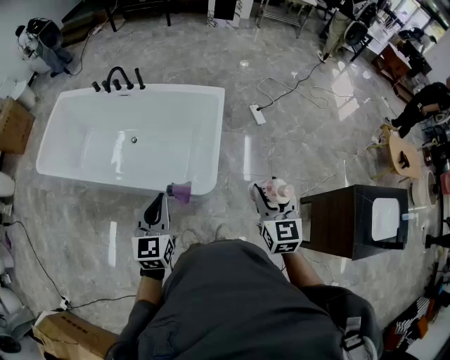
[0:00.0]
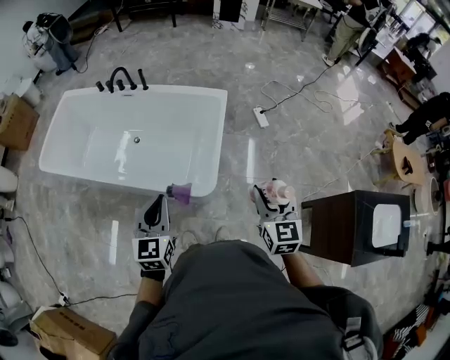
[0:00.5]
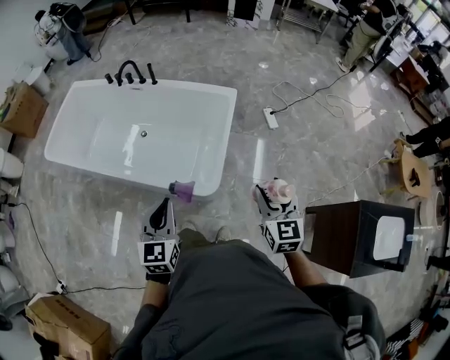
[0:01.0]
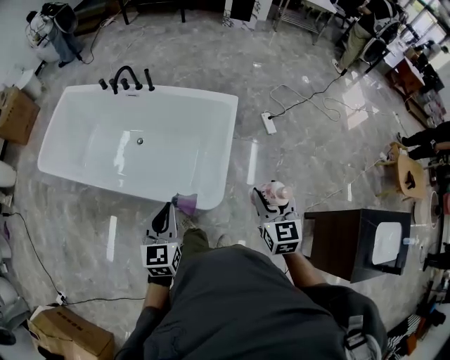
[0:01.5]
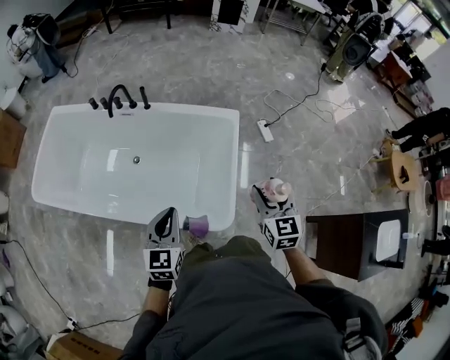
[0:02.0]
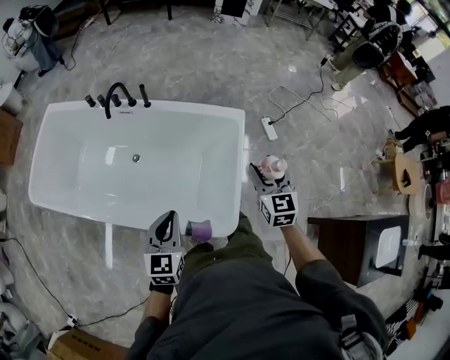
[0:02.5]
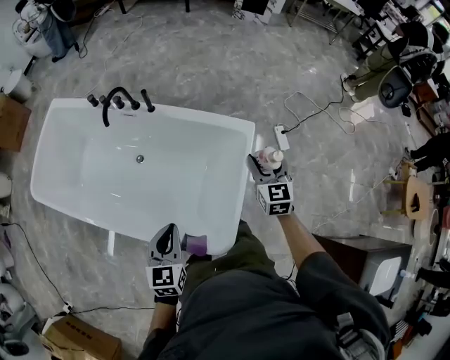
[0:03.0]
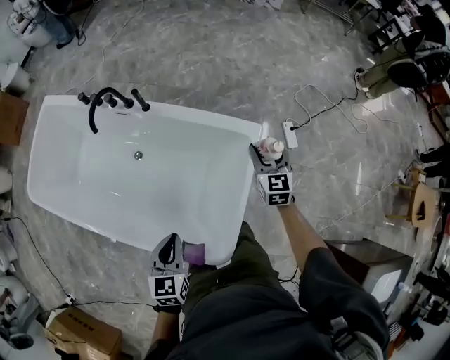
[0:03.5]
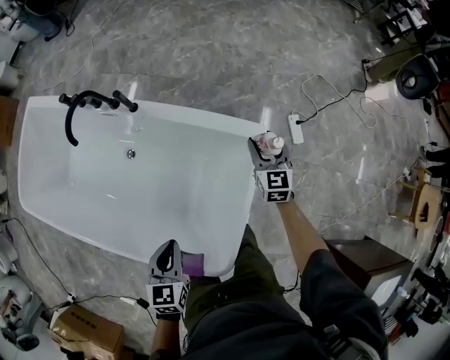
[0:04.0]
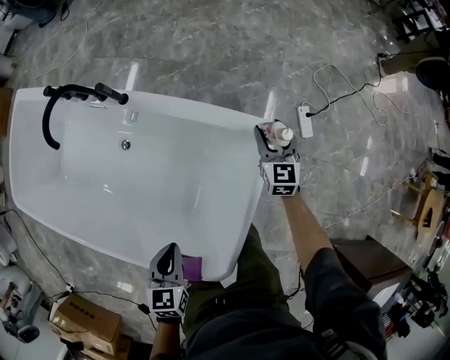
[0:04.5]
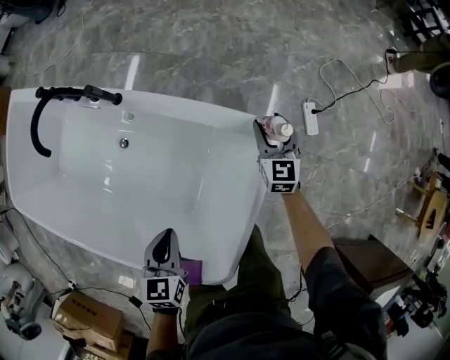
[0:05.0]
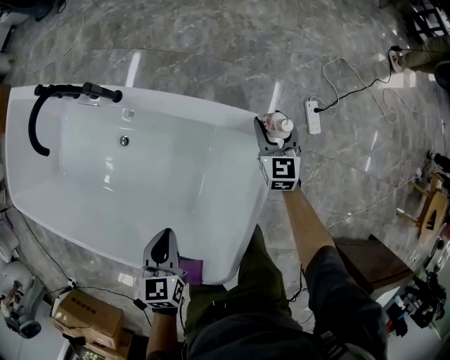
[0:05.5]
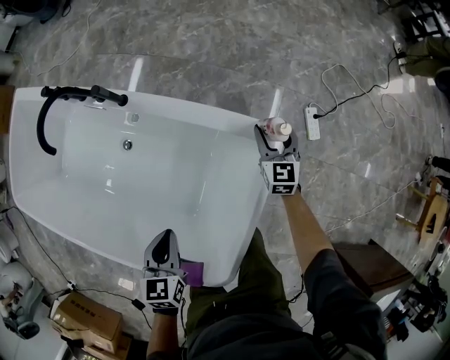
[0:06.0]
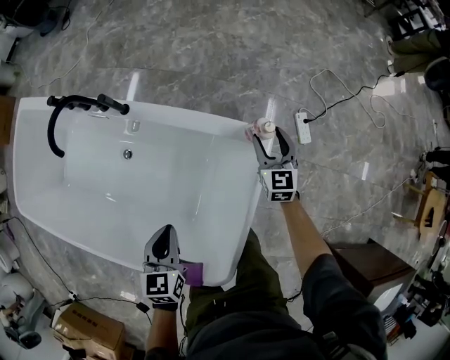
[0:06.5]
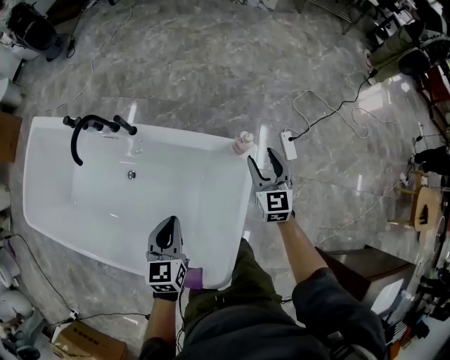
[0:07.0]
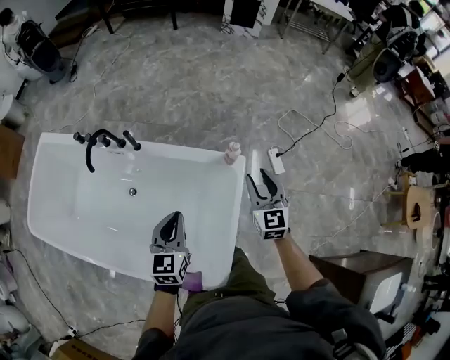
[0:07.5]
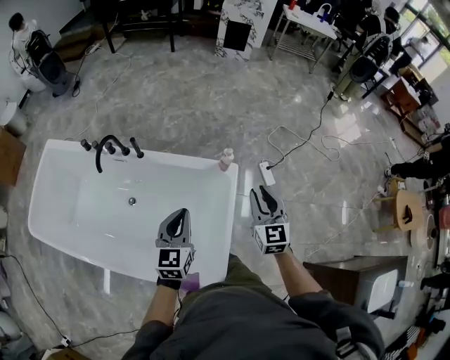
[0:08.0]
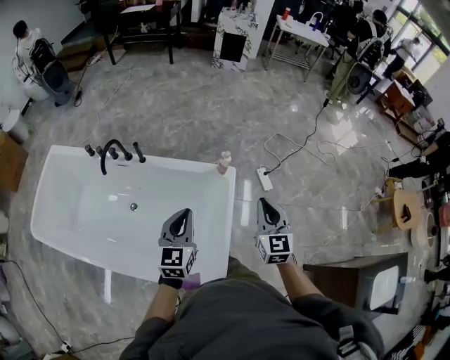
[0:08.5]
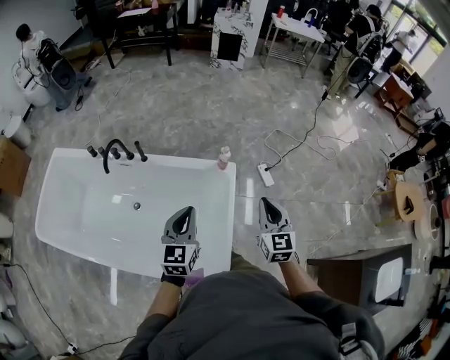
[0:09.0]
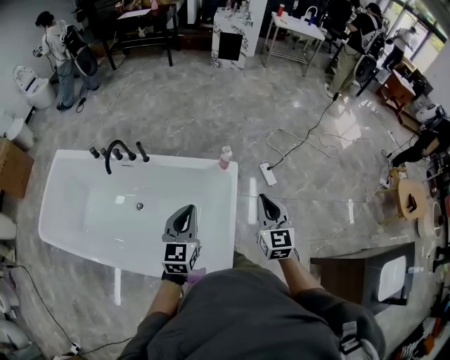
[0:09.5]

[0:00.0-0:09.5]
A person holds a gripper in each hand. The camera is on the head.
0.0 to 2.0 s: The two grippers go approximately 20 cm forward and to the left.
2.0 to 4.0 s: The left gripper travels forward and downward by some 30 cm, and turns by some 30 degrees. The right gripper travels forward and downward by about 60 cm.
4.0 to 5.5 s: The grippers both shift downward and forward by roughly 15 cm.
5.5 to 7.5 s: The left gripper heads upward, covering roughly 25 cm, and changes its angle by some 30 degrees, while the right gripper goes about 35 cm upward and backward.
7.5 to 9.5 s: The right gripper goes about 25 cm backward and upward, and closes. The left gripper heads upward, backward and to the right, covering roughly 15 cm.

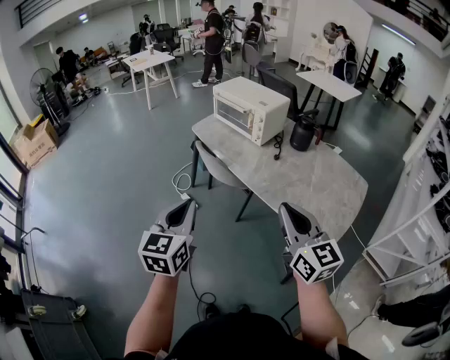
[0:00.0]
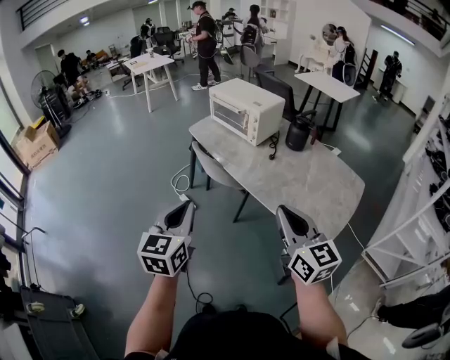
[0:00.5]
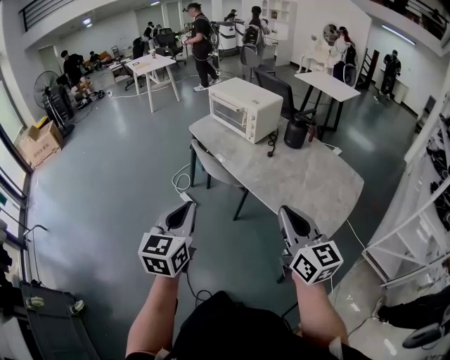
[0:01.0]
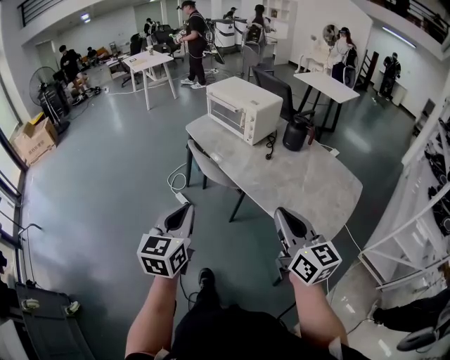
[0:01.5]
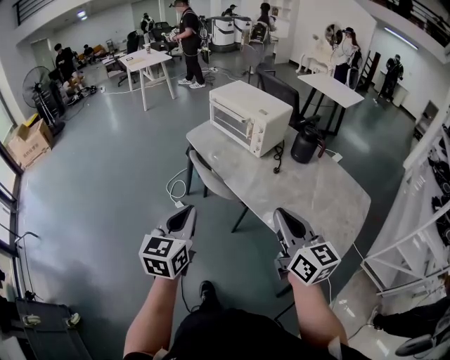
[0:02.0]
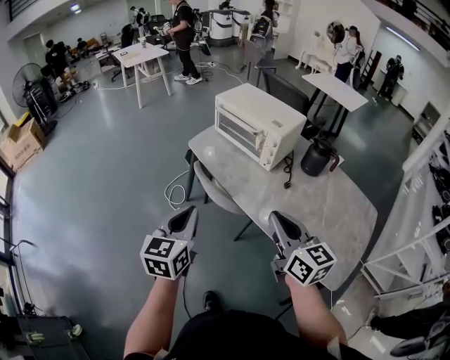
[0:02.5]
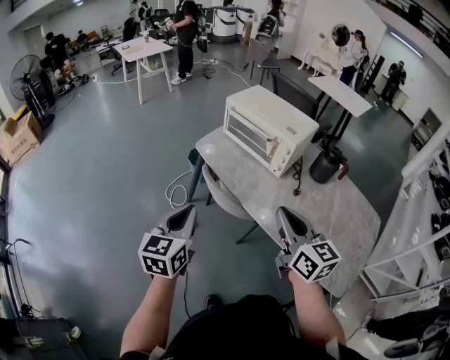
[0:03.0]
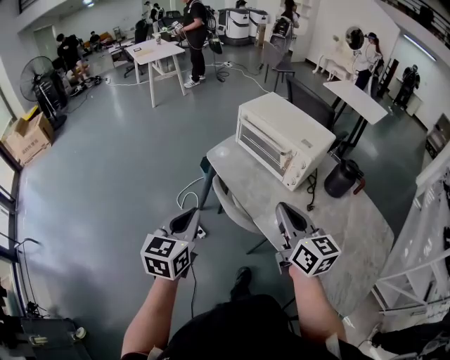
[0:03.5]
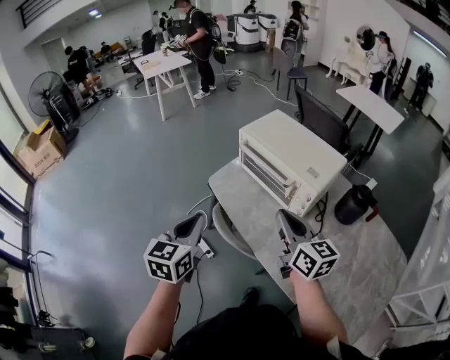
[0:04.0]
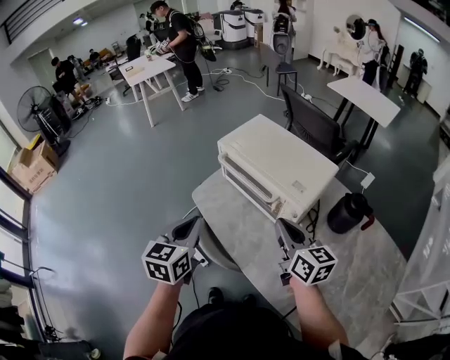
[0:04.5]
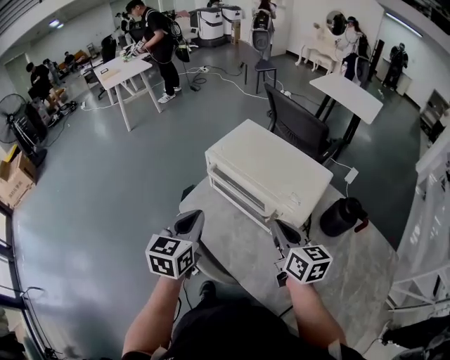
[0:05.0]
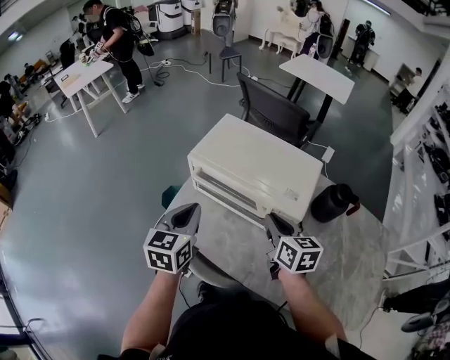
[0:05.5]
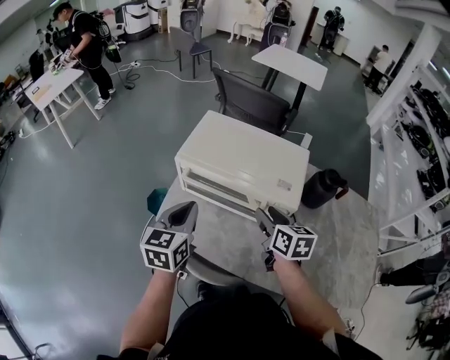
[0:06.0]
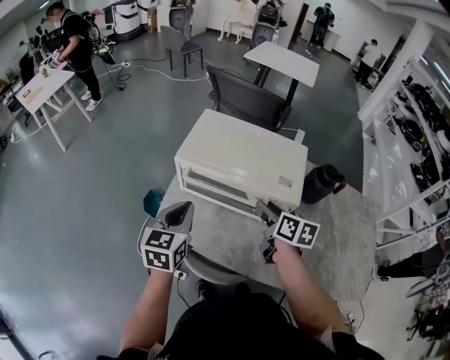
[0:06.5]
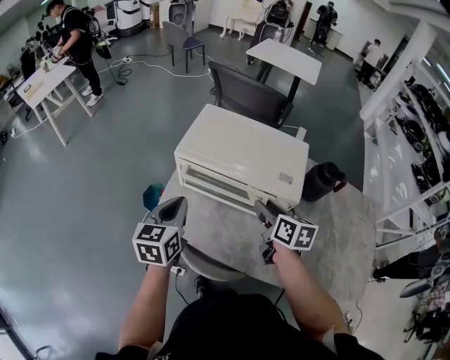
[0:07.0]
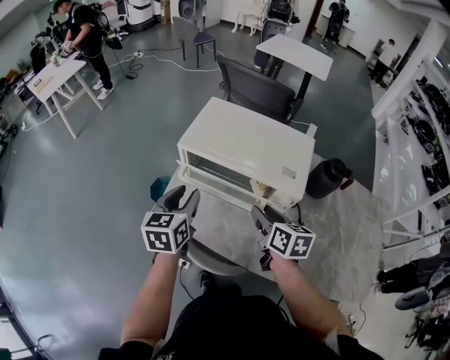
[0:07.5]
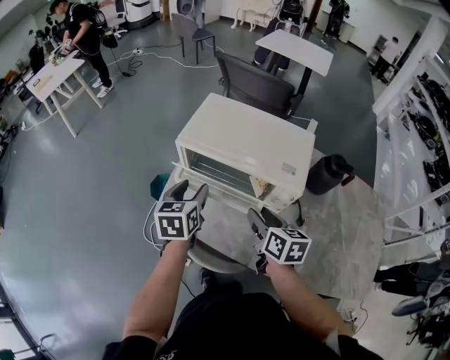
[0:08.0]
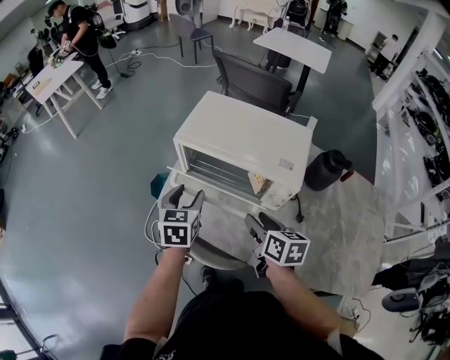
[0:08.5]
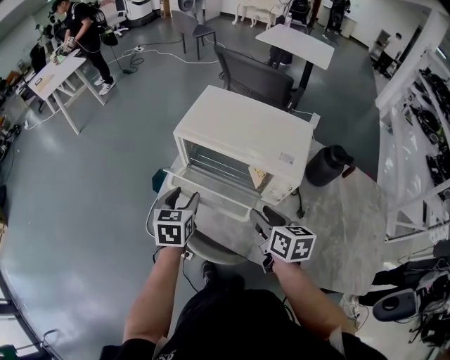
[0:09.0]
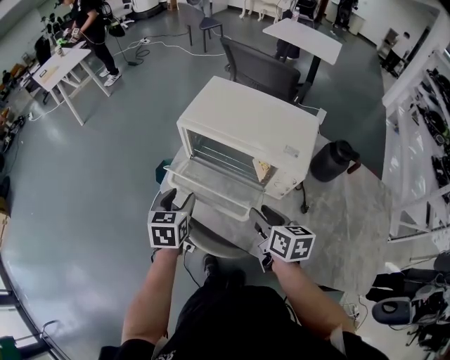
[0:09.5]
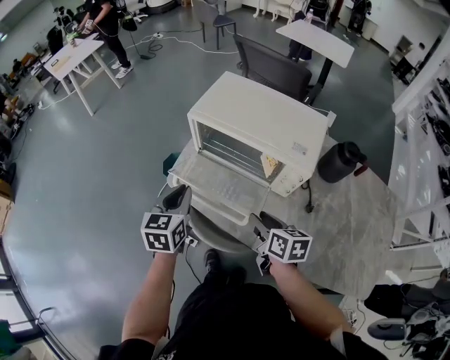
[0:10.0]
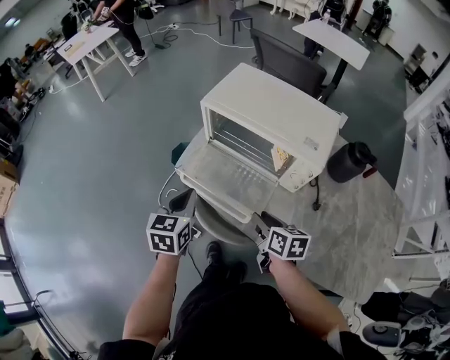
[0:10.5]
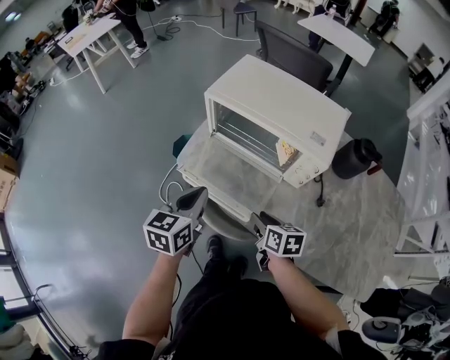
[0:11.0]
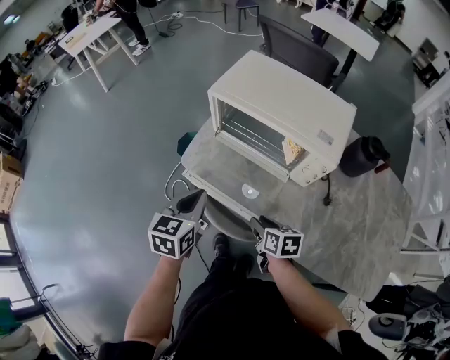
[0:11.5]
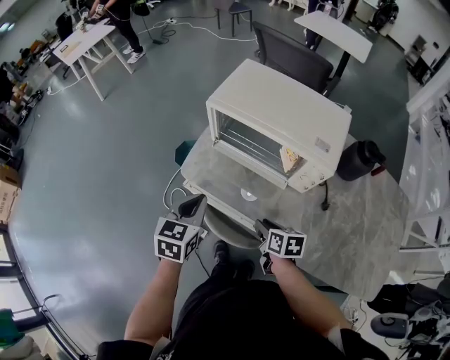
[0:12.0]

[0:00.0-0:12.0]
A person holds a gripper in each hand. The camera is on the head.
0.0 to 2.0 s: Both grippers travel together forward, some 10 cm.
2.0 to 4.0 s: Both grippers travel together forward, approximately 35 cm.
4.0 to 6.0 s: The left gripper shifts by approximately 25 cm, and rotates approximately 30 degrees, while the right gripper changes place by approximately 20 cm, turns by approximately 40 degrees, and opens up.
6.0 to 8.0 s: The left gripper goes roughly 5 cm downward, and opens up; the right gripper changes place by roughly 5 cm.
8.0 to 10.0 s: The left gripper goes approximately 10 cm backward and to the left, and closes up. The right gripper moves backward and downward, roughly 10 cm.
10.0 to 12.0 s: The right gripper moves downward, about 10 cm.

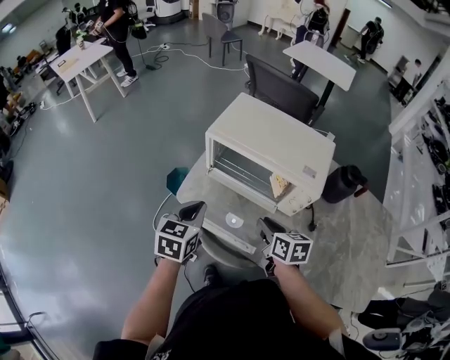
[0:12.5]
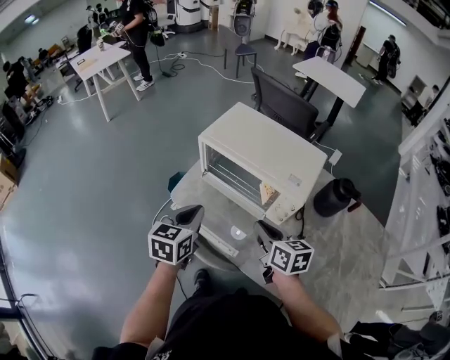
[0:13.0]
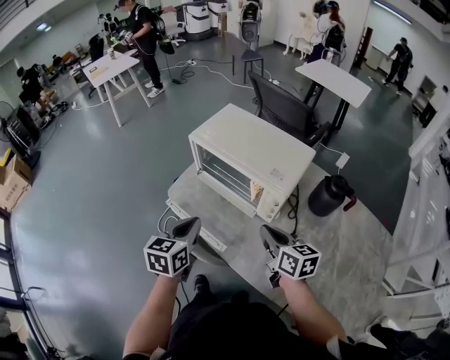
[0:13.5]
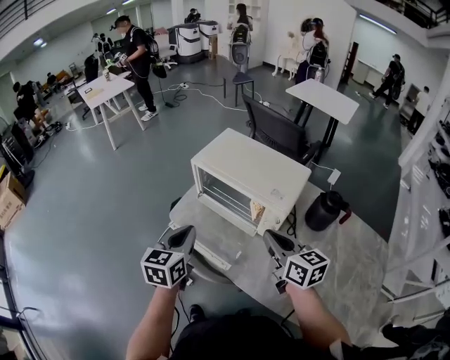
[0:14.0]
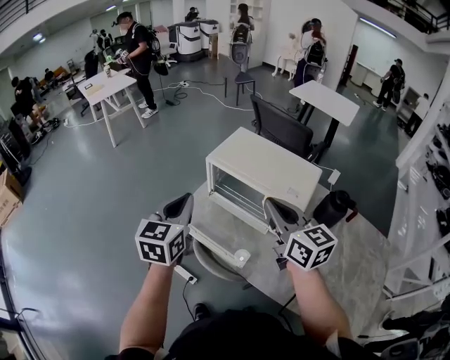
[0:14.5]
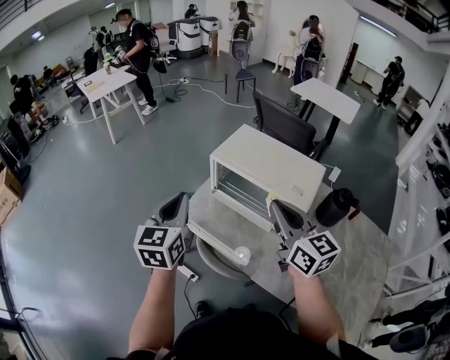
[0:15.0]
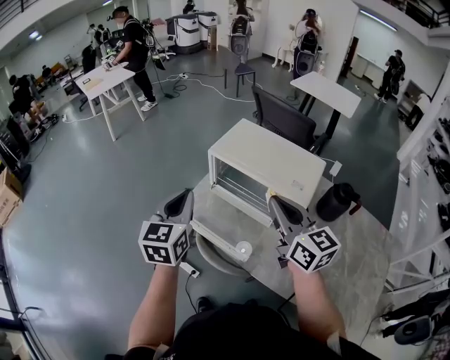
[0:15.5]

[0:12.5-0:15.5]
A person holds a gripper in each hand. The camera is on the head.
12.5 to 14.0 s: The right gripper heads upward and to the right, covering roughly 15 cm, and changes its angle by some 30 degrees. The left gripper is displaced upward, backward and to the right by some 10 cm.
14.0 to 15.5 s: The left gripper is displaced upward, to the left and forward by about 10 cm; the right gripper travels upward and to the left by roughly 10 cm.

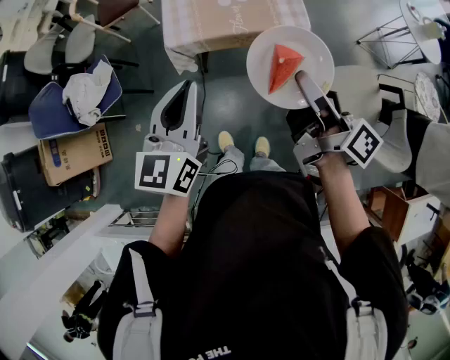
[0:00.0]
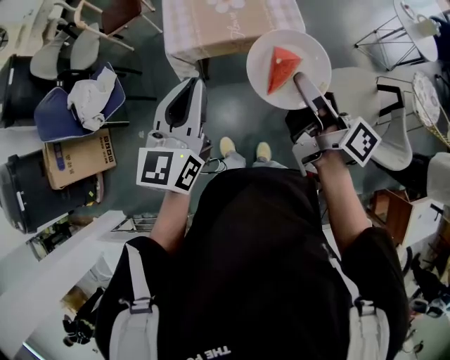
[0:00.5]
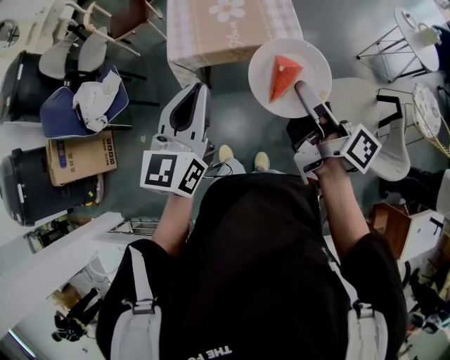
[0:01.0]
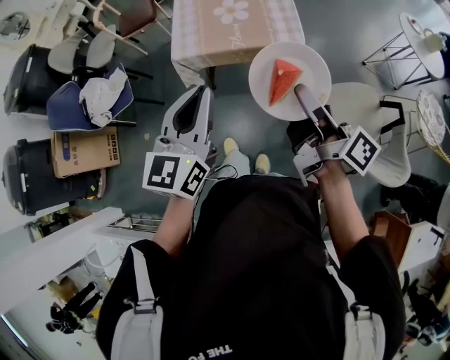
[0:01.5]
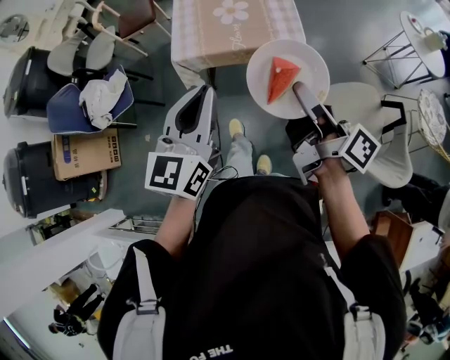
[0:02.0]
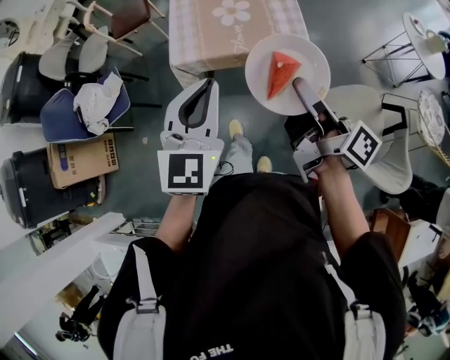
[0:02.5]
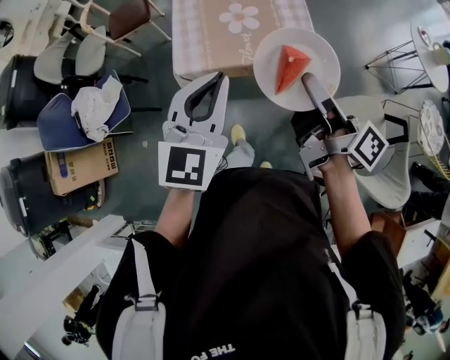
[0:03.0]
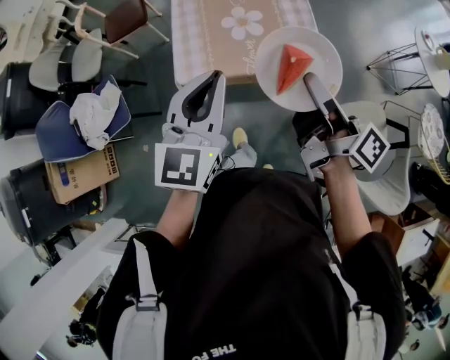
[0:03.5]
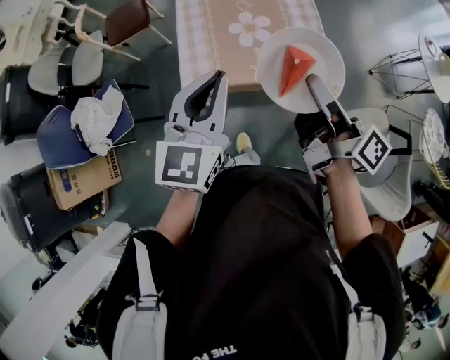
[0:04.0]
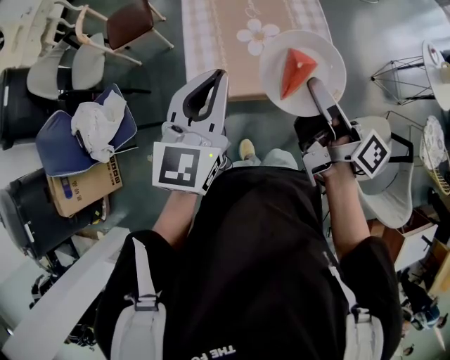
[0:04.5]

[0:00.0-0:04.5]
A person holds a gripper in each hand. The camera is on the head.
0.0 to 2.0 s: The right gripper shifts some 5 cm to the right, while the left gripper heads to the right, covering roughly 10 cm.
2.0 to 4.5 s: The right gripper shifts about 30 cm forward and to the left. The left gripper moves forward, roughly 30 cm.
